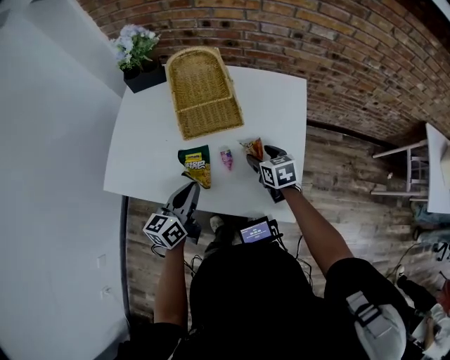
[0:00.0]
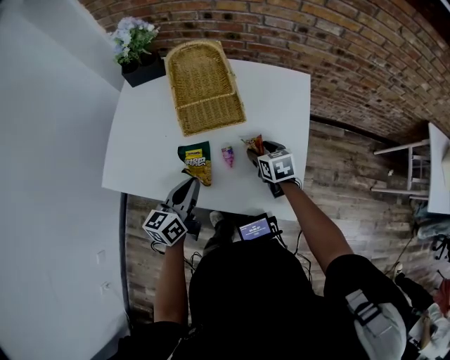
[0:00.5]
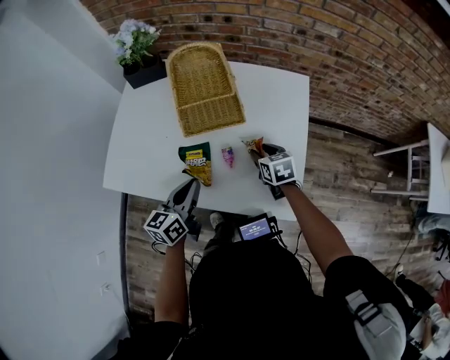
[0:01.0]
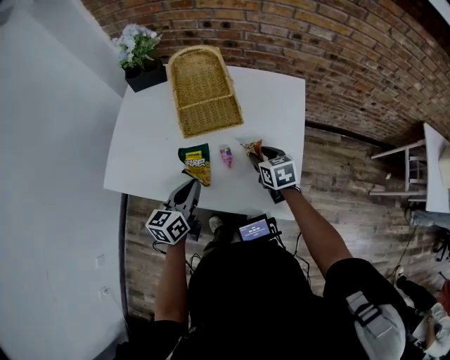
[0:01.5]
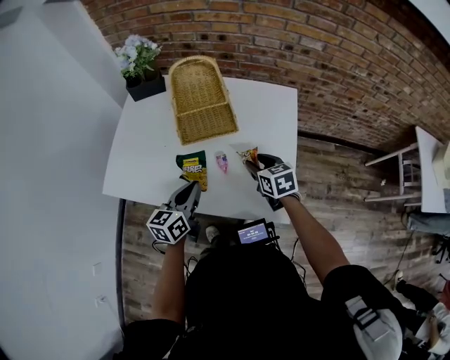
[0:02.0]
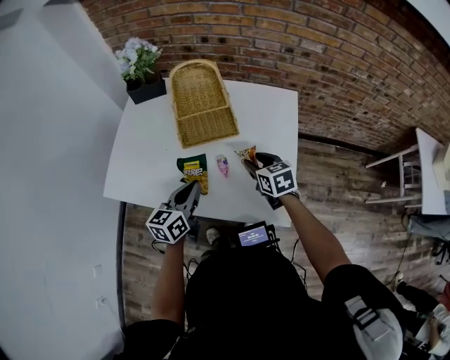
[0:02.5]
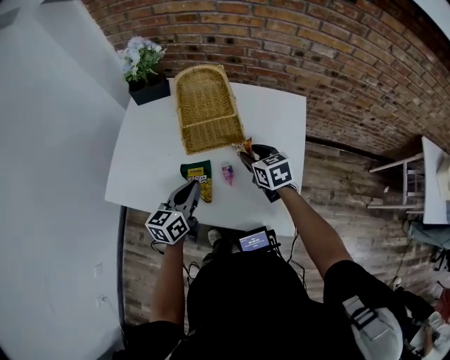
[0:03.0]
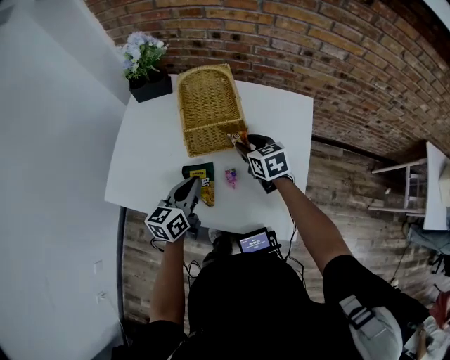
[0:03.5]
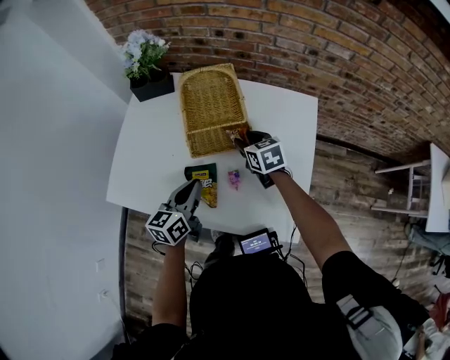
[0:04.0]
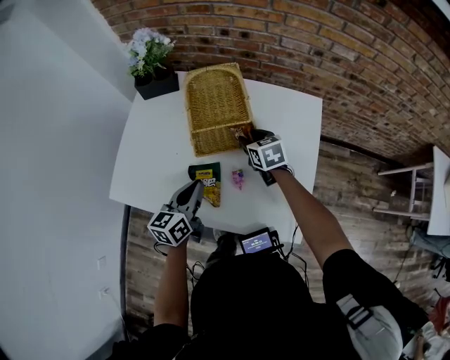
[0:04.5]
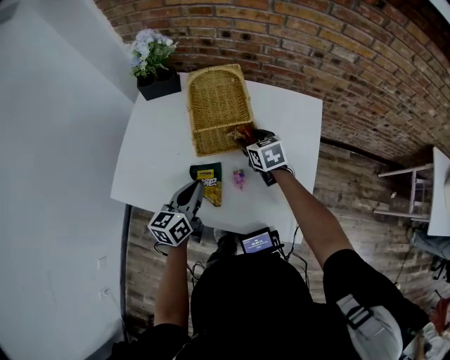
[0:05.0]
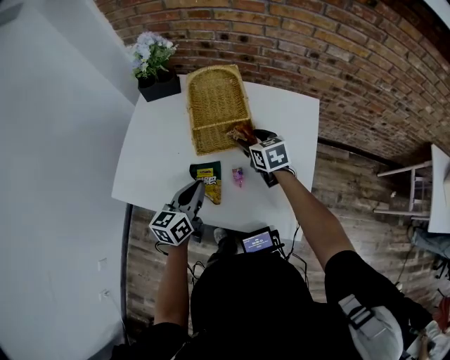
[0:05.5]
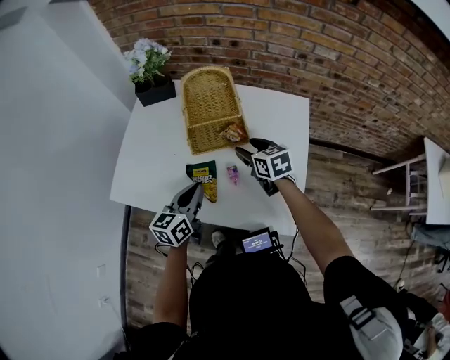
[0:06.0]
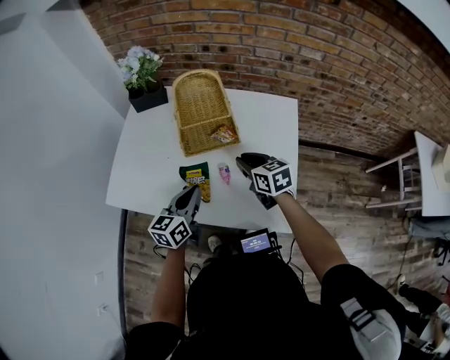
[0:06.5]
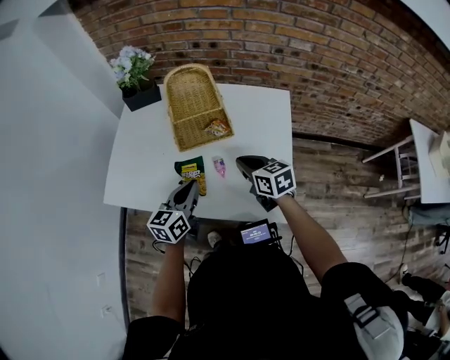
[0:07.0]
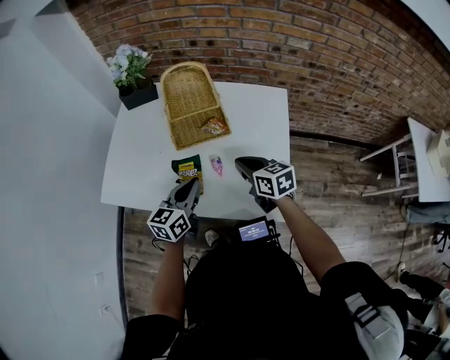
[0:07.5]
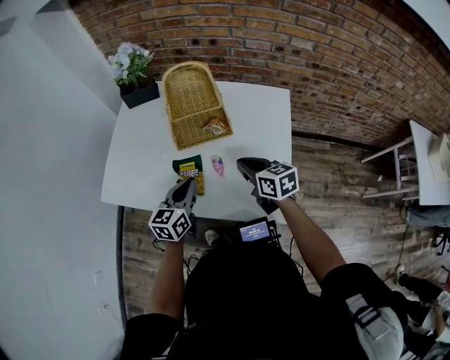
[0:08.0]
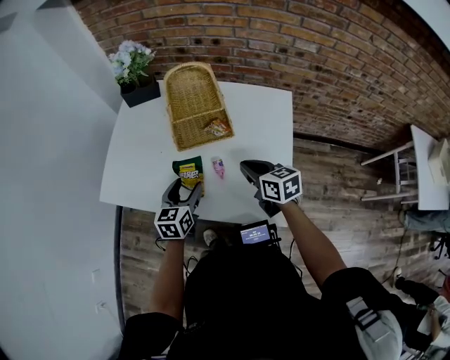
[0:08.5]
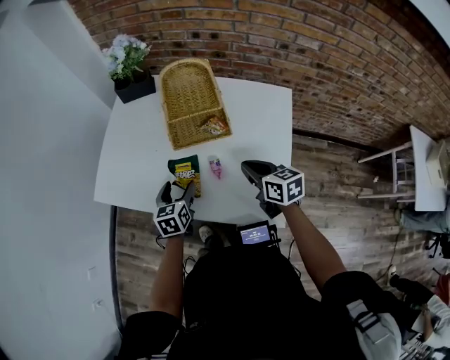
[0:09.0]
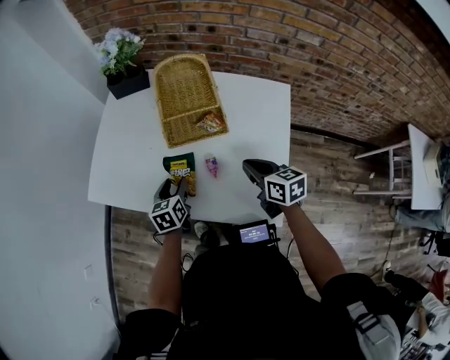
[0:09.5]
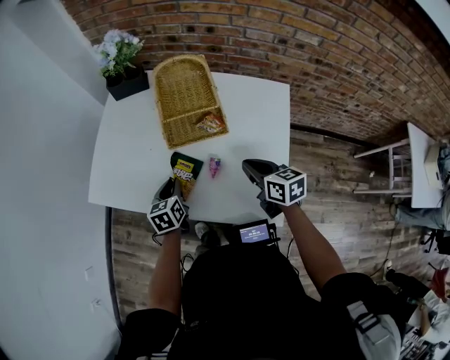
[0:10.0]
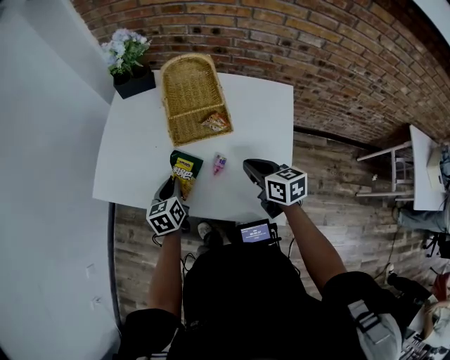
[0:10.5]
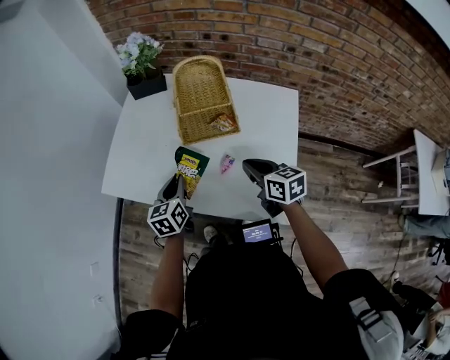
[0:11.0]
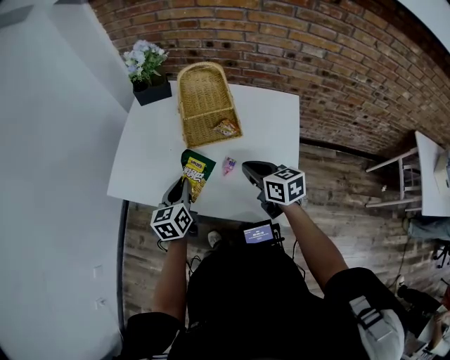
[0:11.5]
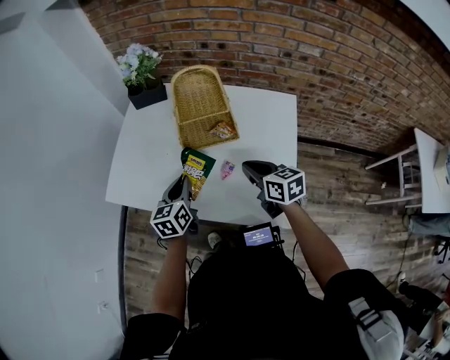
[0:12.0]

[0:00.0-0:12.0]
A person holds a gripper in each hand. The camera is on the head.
0:00.0 to 0:02.0: The right gripper moves roughly 5 cm.
0:02.0 to 0:04.0: The right gripper is displaced forward and to the left by about 15 cm; the left gripper moves forward, about 5 cm.
0:04.0 to 0:06.0: The right gripper shifts roughly 5 cm backward.
0:06.0 to 0:08.0: The right gripper heads backward, covering about 10 cm, and closes.
0:08.0 to 0:10.0: The left gripper goes roughly 10 cm downward and to the left, swivels approximately 30 degrees, and opens and closes again.
0:10.0 to 0:12.0: The left gripper is displaced upward by some 10 cm.

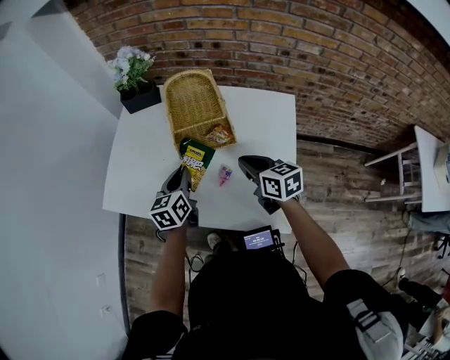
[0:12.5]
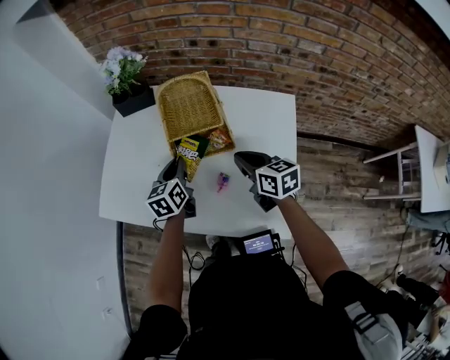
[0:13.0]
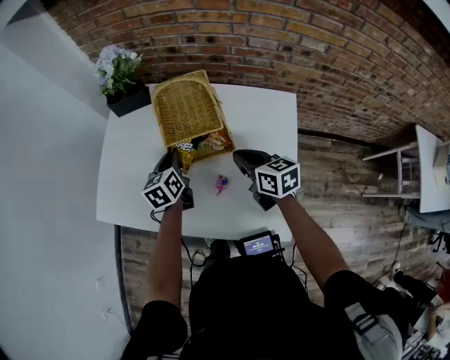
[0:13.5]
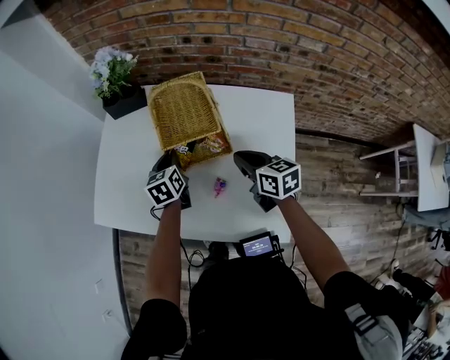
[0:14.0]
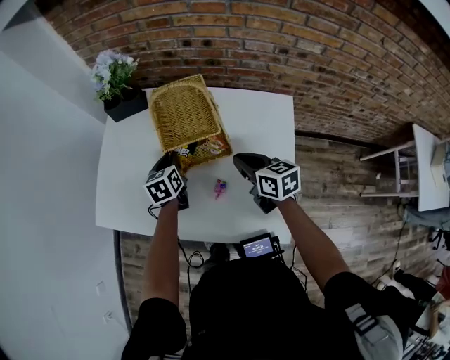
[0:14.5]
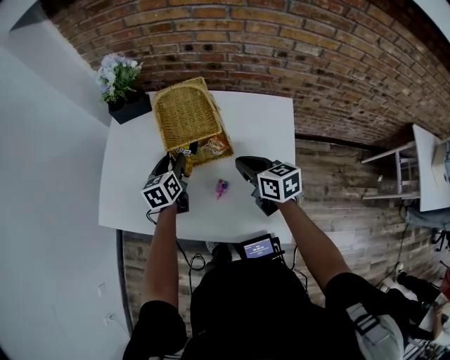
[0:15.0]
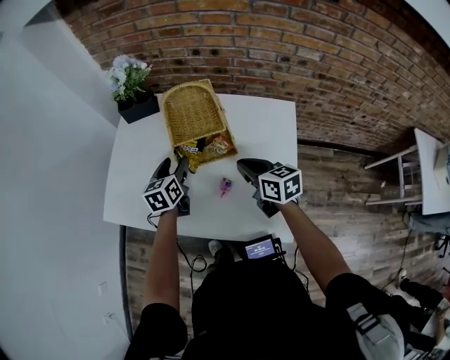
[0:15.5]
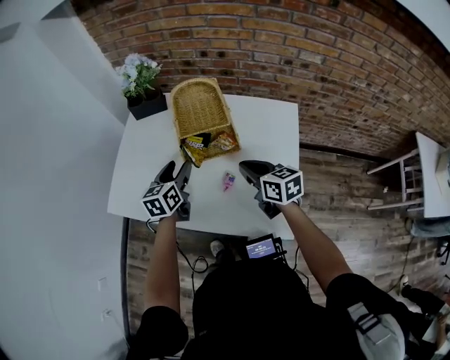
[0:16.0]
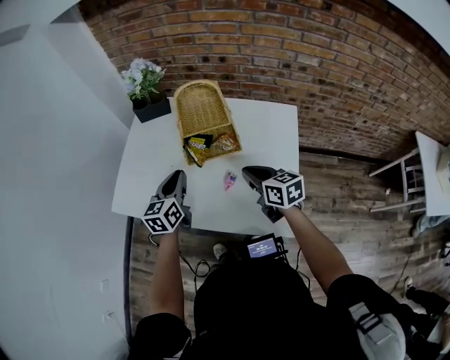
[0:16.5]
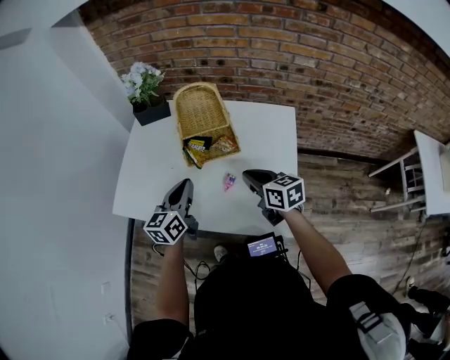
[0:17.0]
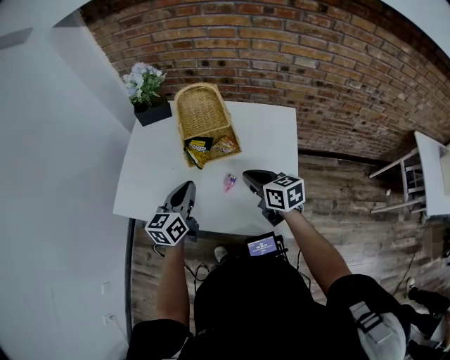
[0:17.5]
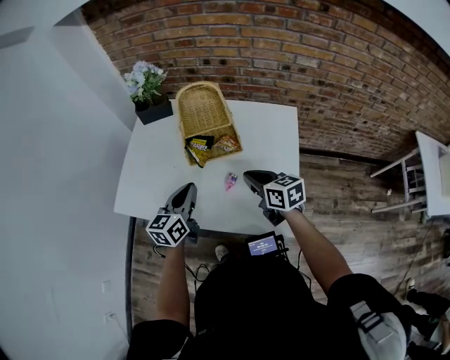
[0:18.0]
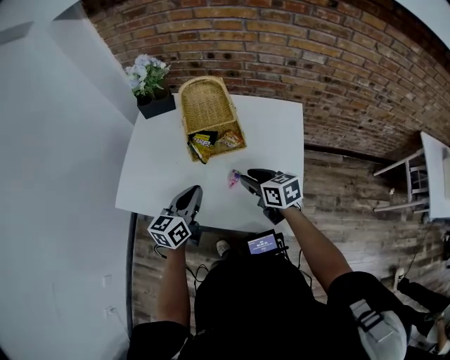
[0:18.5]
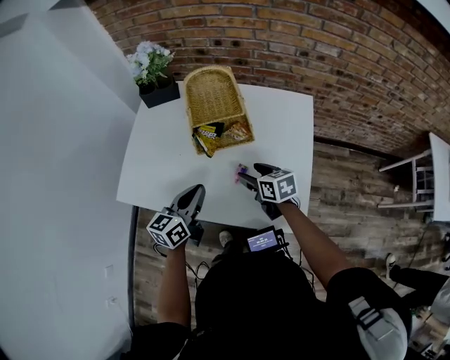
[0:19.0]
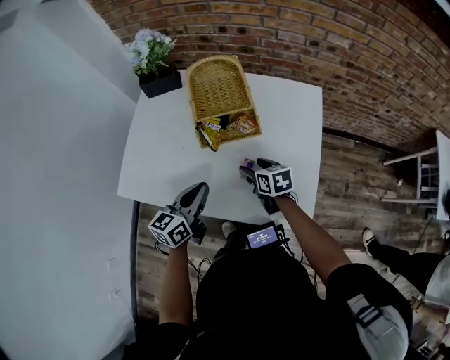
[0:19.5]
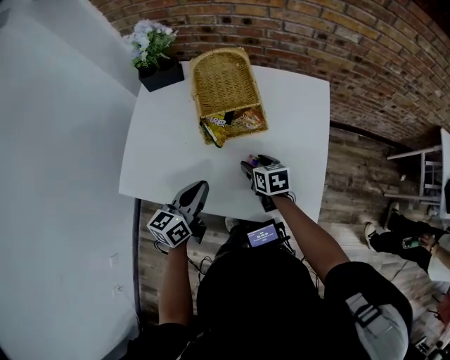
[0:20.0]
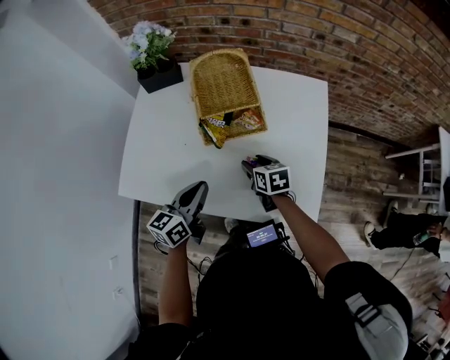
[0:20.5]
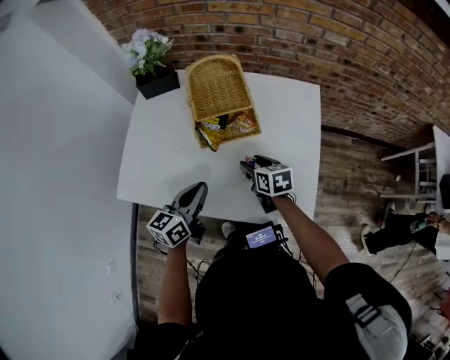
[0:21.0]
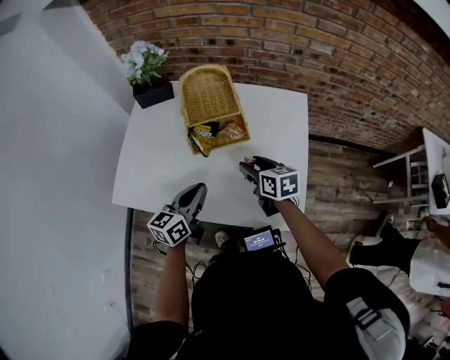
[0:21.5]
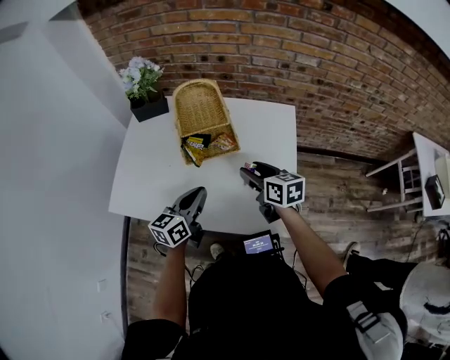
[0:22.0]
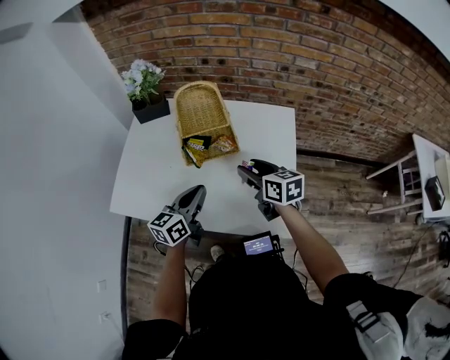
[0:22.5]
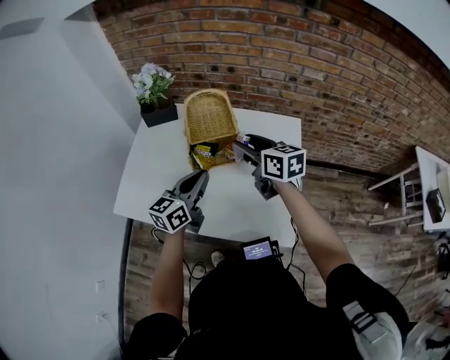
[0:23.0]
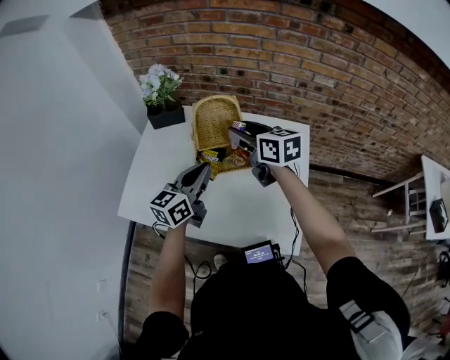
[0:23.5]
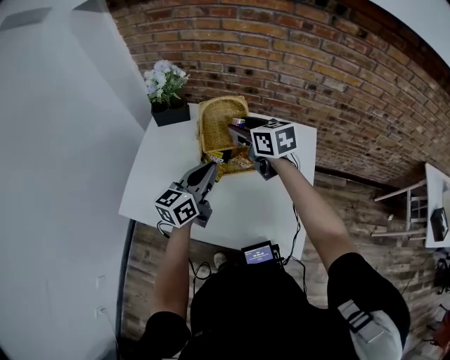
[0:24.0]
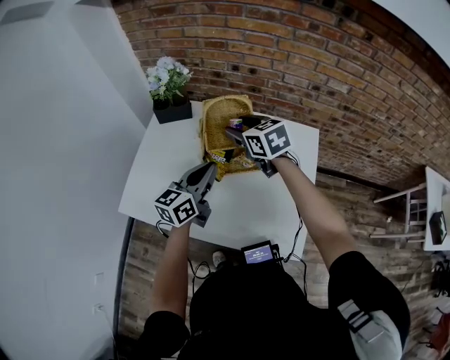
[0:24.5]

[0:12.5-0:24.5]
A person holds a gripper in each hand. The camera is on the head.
0:12.5 to 0:14.5: The left gripper shifts approximately 15 cm forward and downward, while the right gripper is displaced forward by some 5 cm.
0:14.5 to 0:16.5: The left gripper moves backward and upward, approximately 15 cm, rotates approximately 20 degrees, and opens and closes again. The right gripper moves backward, some 5 cm.
0:16.5 to 0:18.5: The right gripper opens up; the left gripper goes approximately 5 cm backward.
0:18.5 to 0:20.5: The right gripper heads downward, covering some 10 cm, and opens its fingers.
0:20.5 to 0:22.5: The right gripper shifts approximately 15 cm upward and to the right, and swivels about 20 degrees. Meanwhile the left gripper is displaced to the right by about 5 cm.
0:22.5 to 0:24.5: The left gripper moves forward and upward, roughly 10 cm. The right gripper moves forward, to the left and upward, some 20 cm, and changes its angle by approximately 30 degrees.

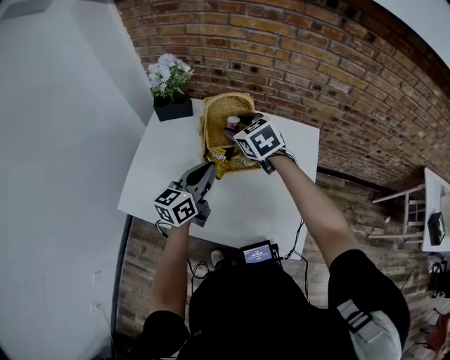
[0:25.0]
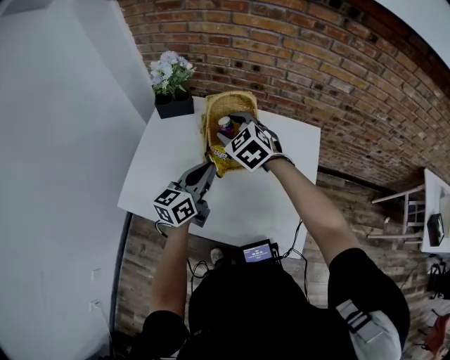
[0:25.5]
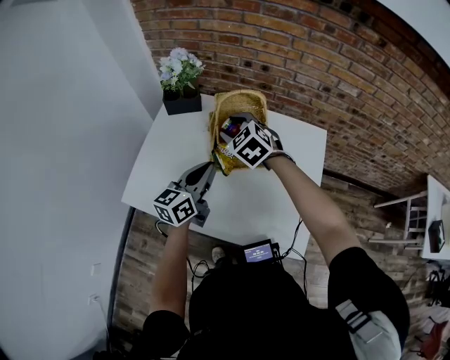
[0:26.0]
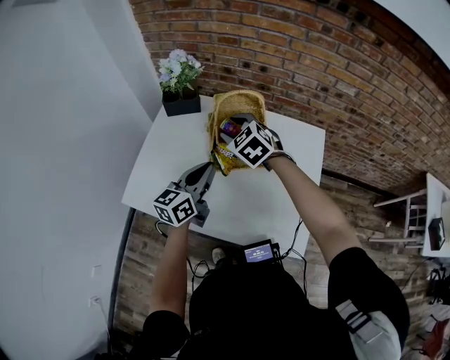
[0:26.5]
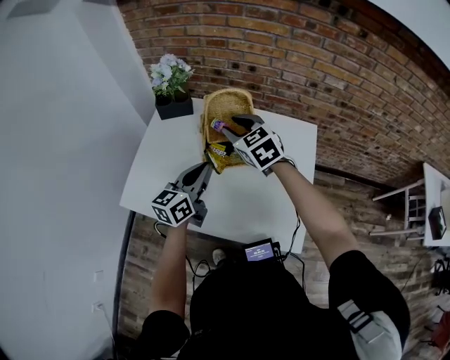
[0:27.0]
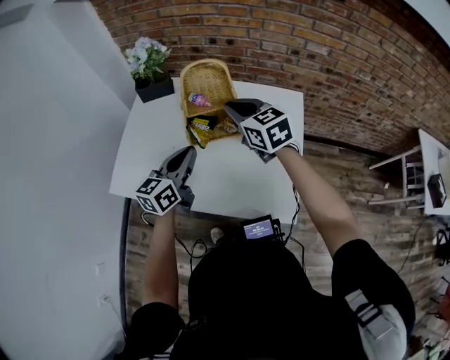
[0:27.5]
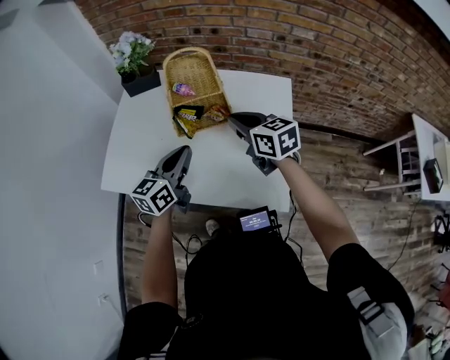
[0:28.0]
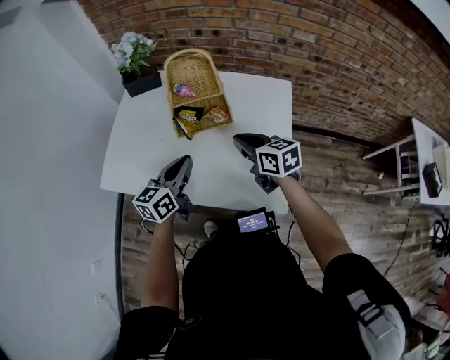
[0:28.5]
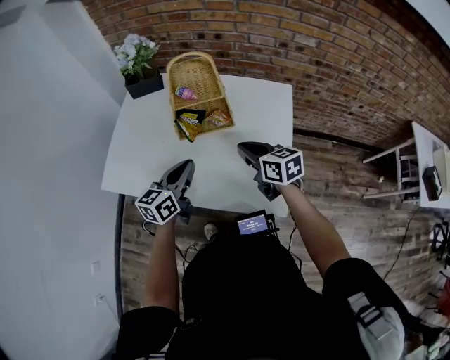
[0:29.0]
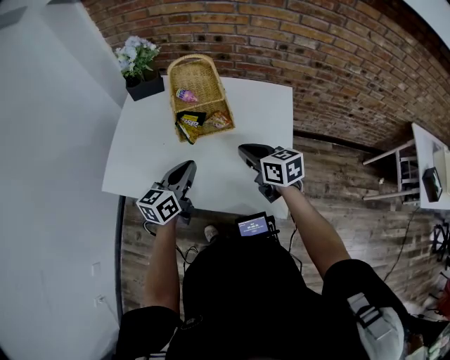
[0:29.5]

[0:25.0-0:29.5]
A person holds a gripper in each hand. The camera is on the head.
0:27.0 to 0:29.5: The right gripper moves backward, to the right and downward, about 20 cm, turns by roughly 40 degrees, and closes up, while the left gripper travels backward and downward by approximately 10 cm.
